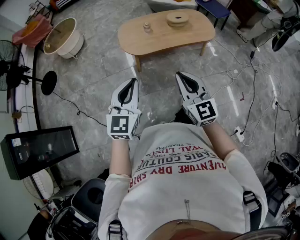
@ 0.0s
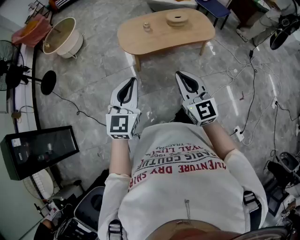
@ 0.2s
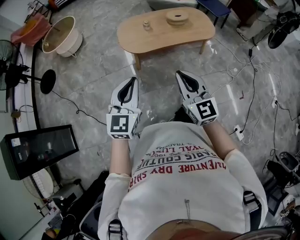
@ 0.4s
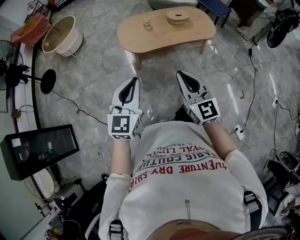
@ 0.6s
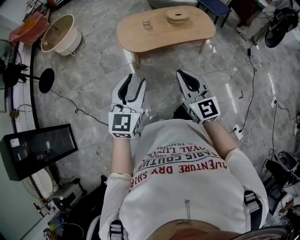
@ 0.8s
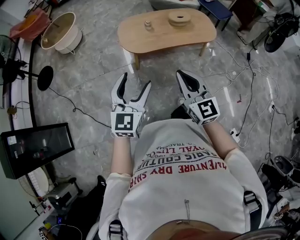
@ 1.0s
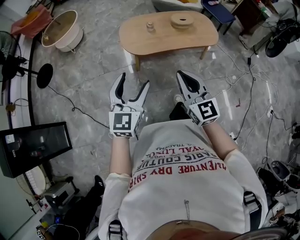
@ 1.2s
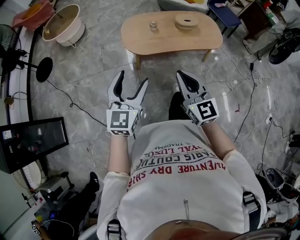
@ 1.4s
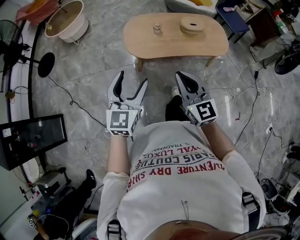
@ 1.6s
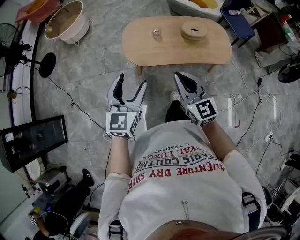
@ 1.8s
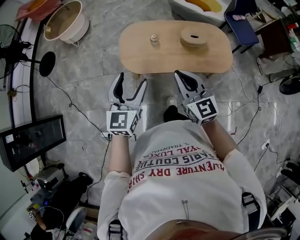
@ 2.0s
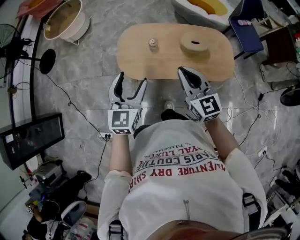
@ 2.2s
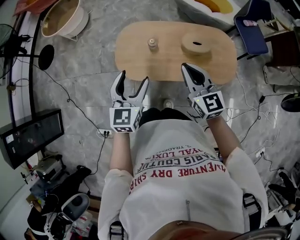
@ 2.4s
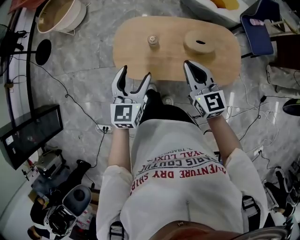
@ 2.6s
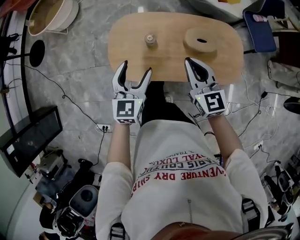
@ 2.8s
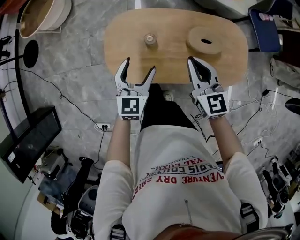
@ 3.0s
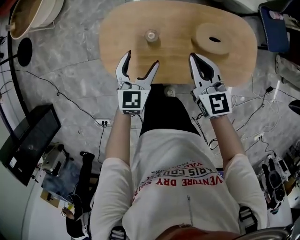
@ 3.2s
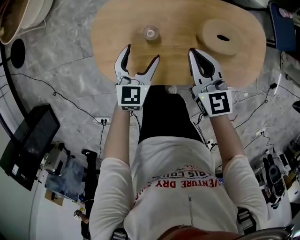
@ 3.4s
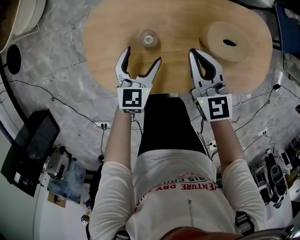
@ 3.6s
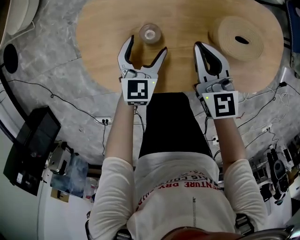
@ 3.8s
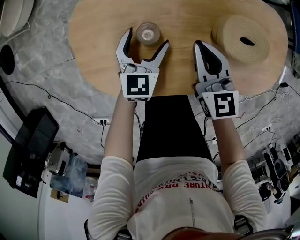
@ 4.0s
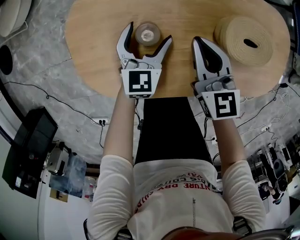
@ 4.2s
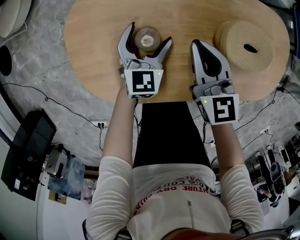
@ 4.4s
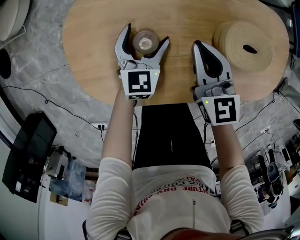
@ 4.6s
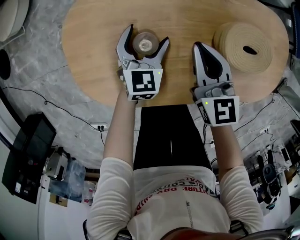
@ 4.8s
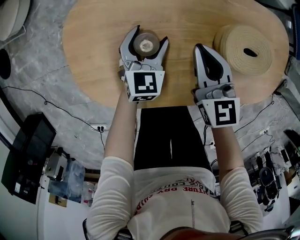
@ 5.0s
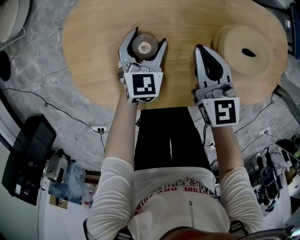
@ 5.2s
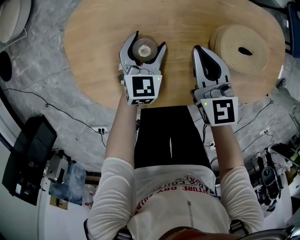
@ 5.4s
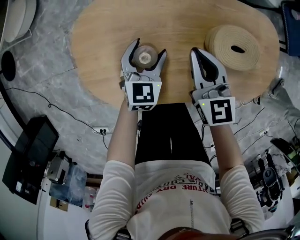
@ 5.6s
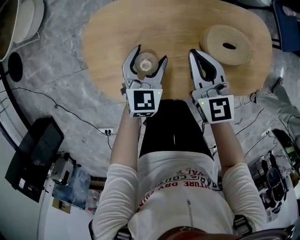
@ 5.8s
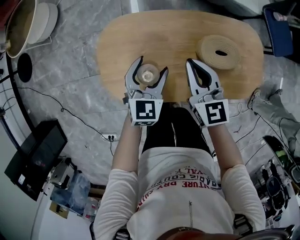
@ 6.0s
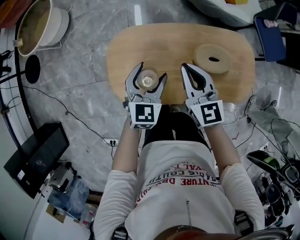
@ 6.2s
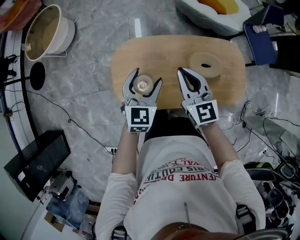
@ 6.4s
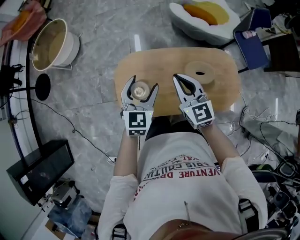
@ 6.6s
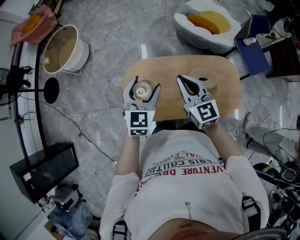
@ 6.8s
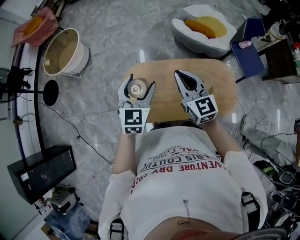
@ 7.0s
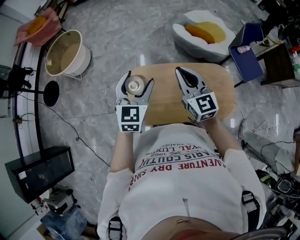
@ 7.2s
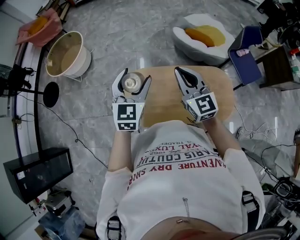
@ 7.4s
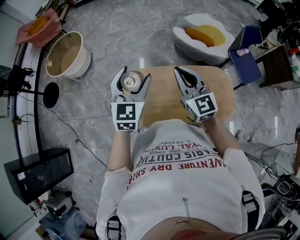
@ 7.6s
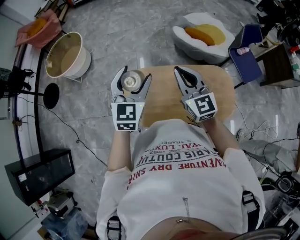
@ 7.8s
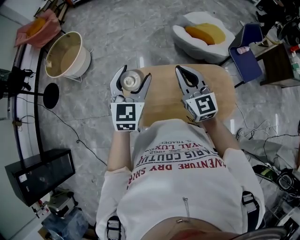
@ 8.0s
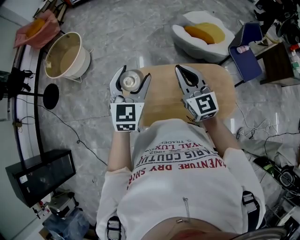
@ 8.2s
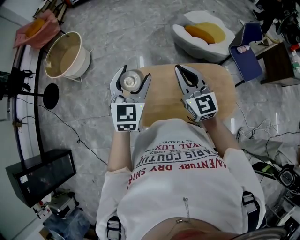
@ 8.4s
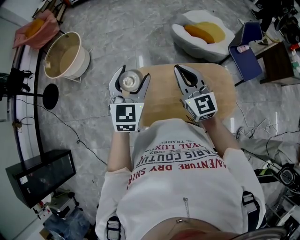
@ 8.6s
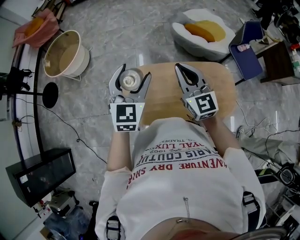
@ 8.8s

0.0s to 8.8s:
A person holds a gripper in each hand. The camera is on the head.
0.0s to 1.4s: The two grippers go about 10 cm forward. The left gripper opens its fingers.
1.4s to 3.0s: The two grippers travel together, forward and to the right, some 50 cm. The left gripper goes approximately 20 cm downward.
3.0s to 4.4s: The right gripper is displaced downward by roughly 25 cm. The left gripper is displaced downward and forward by approximately 35 cm.
4.4s to 5.8s: The two grippers go approximately 10 cm upward.
5.8s to 7.4s: Both grippers move upward, some 40 cm. The right gripper swivels approximately 20 degrees. Meanwhile the left gripper rotates about 20 degrees.
7.4s to 8.8s: The grippers make only small movements.

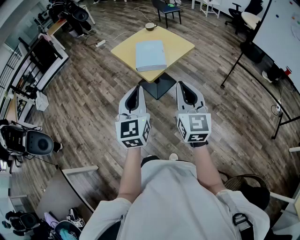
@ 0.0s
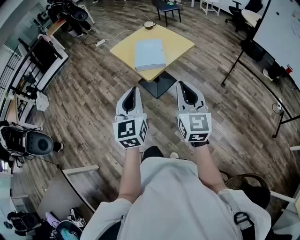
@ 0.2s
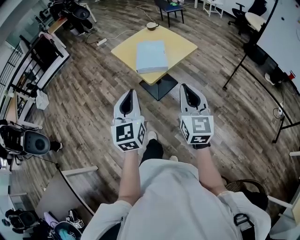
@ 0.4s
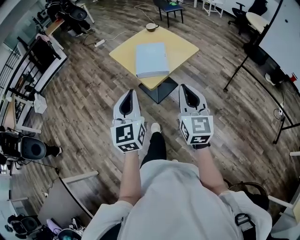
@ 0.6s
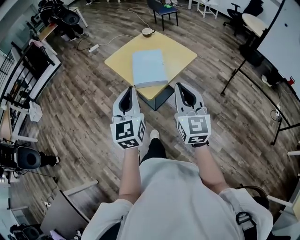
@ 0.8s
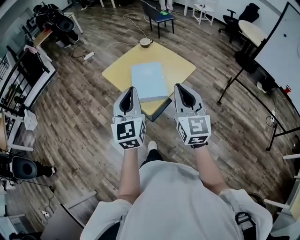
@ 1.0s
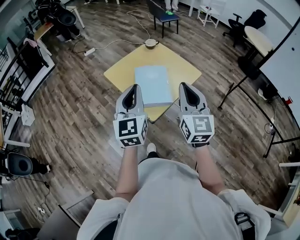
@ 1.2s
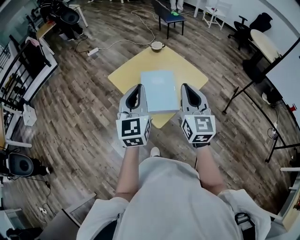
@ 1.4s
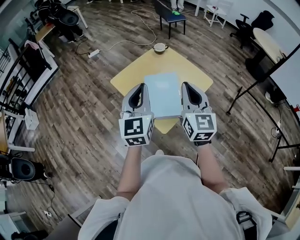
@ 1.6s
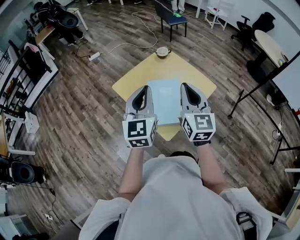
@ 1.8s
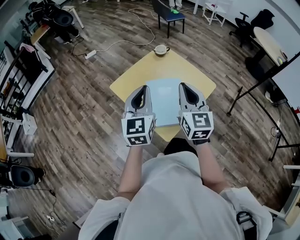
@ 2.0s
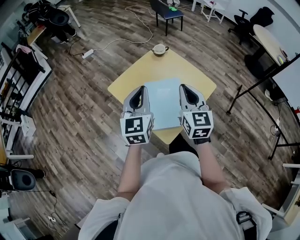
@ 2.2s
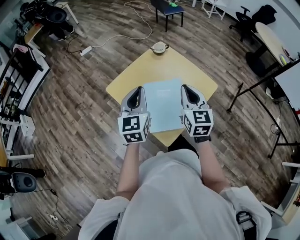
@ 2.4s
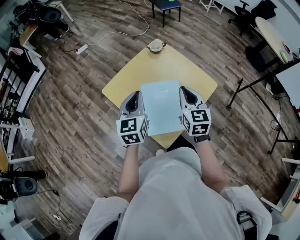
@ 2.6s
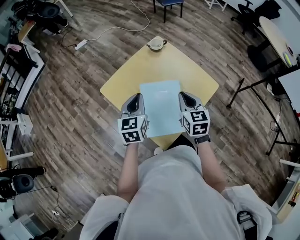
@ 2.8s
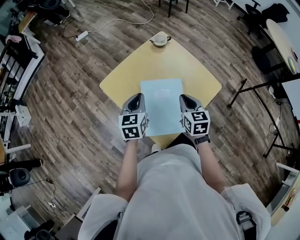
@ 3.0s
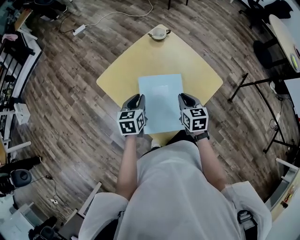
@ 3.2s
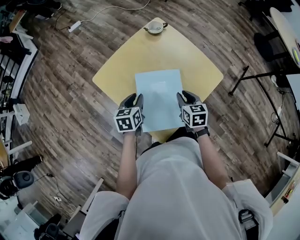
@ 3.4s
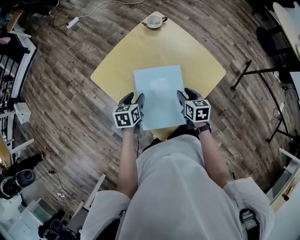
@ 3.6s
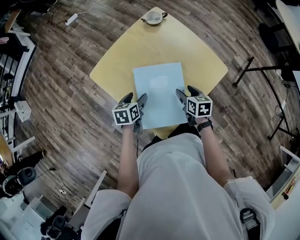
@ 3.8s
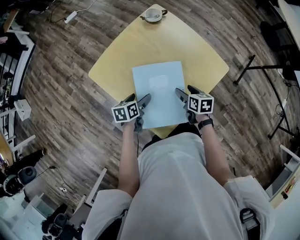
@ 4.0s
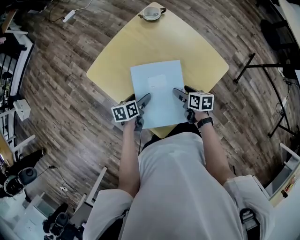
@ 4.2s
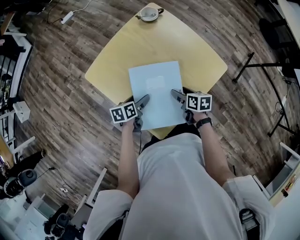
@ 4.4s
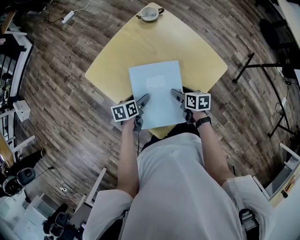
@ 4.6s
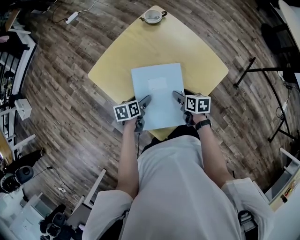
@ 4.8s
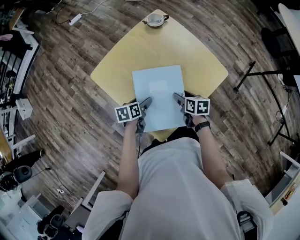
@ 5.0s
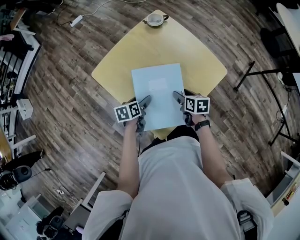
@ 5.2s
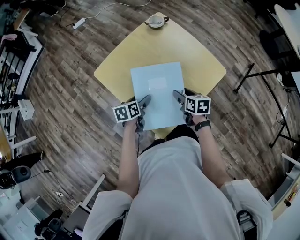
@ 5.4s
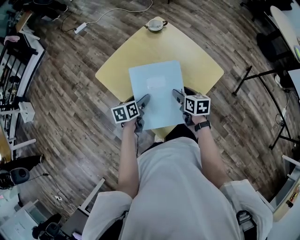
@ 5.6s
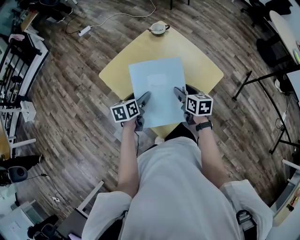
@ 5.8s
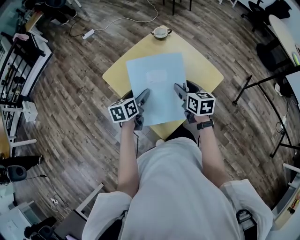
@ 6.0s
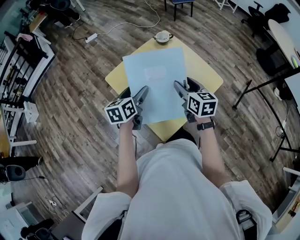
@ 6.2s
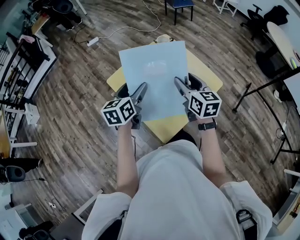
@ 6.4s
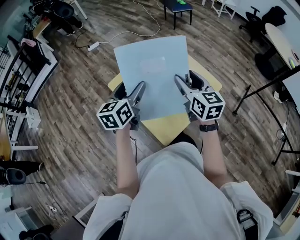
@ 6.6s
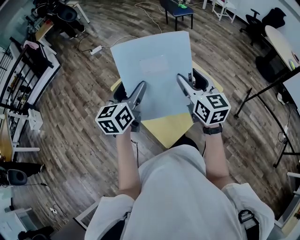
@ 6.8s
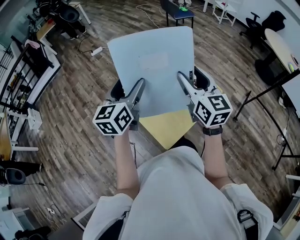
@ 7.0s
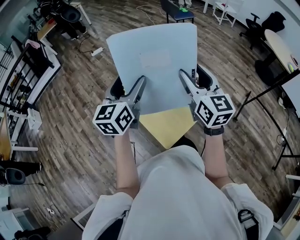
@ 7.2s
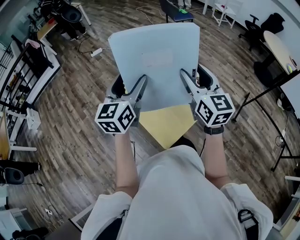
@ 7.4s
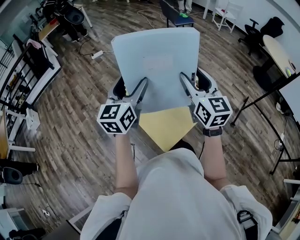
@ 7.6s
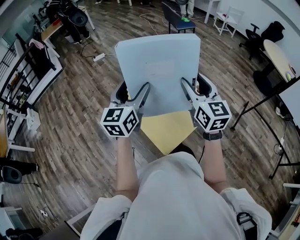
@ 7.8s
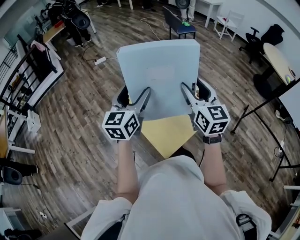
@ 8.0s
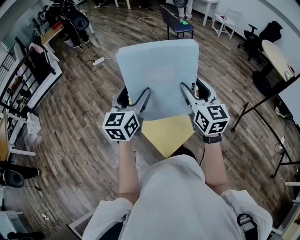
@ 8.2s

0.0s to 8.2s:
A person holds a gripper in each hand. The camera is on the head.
0.0s to 1.6s: Both grippers are carried forward, some 40 cm.
1.6s to 3.2s: The grippers both shift downward and forward by some 35 cm. The right gripper angles its fingers downward, by about 40 degrees. The left gripper points its fingers about 40 degrees further downward.
3.2s to 5.0s: The grippers both shift downward by some 15 cm. The right gripper changes its angle by some 30 degrees, and opens up. The left gripper changes its angle by about 30 degrees, and opens its fingers.
5.0s to 6.6s: The grippers both shift upward by about 35 cm. The left gripper tips its fingers upward by roughly 30 degrees, while the right gripper tips its fingers upward by roughly 40 degrees.
6.6s to 8.2s: Both grippers move upward, roughly 10 cm.

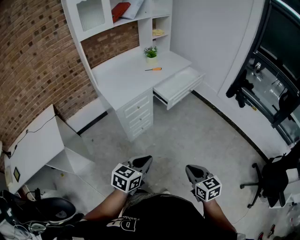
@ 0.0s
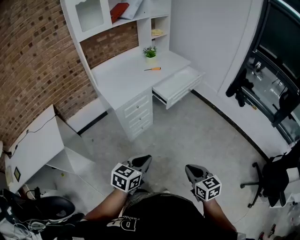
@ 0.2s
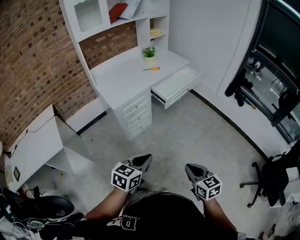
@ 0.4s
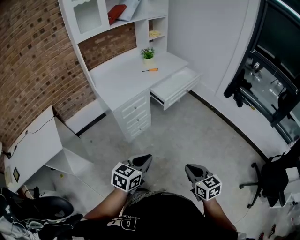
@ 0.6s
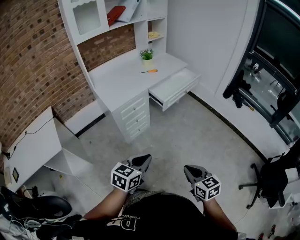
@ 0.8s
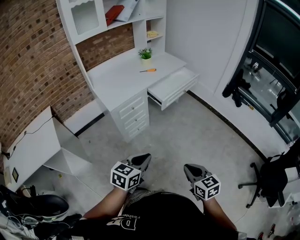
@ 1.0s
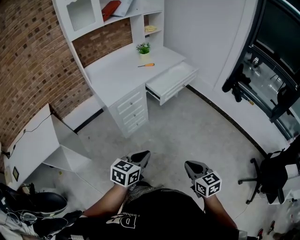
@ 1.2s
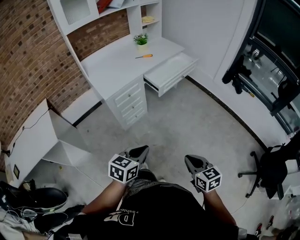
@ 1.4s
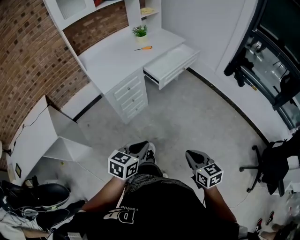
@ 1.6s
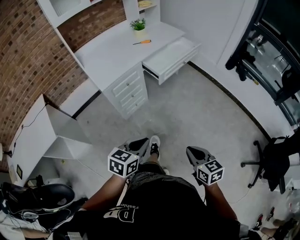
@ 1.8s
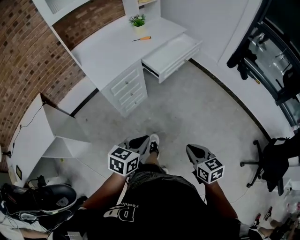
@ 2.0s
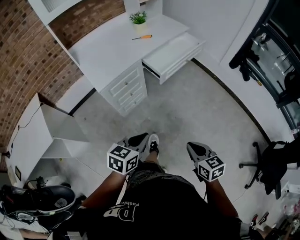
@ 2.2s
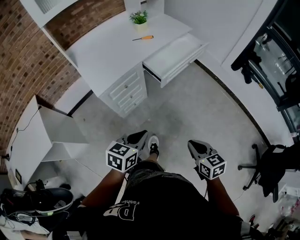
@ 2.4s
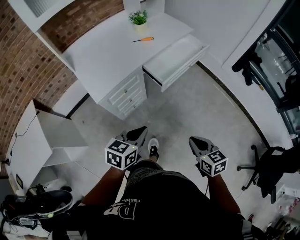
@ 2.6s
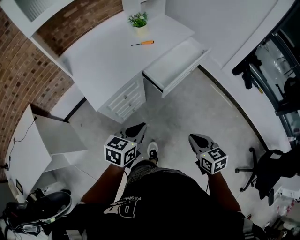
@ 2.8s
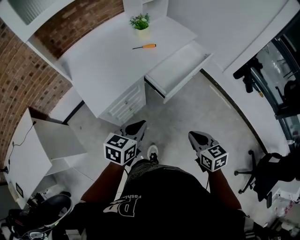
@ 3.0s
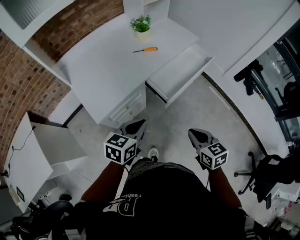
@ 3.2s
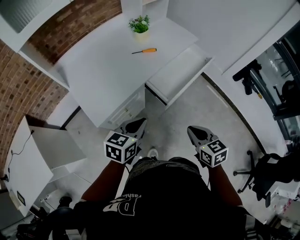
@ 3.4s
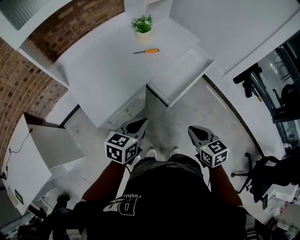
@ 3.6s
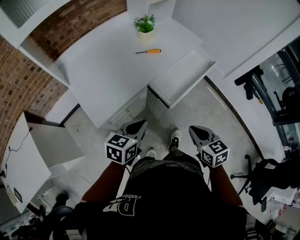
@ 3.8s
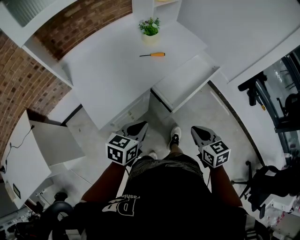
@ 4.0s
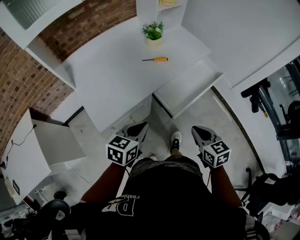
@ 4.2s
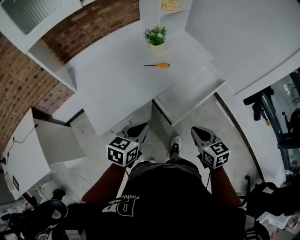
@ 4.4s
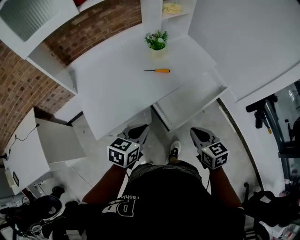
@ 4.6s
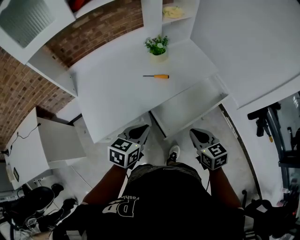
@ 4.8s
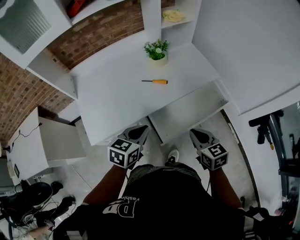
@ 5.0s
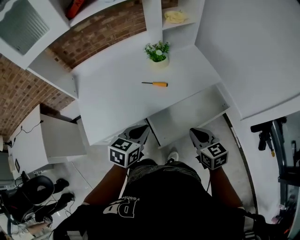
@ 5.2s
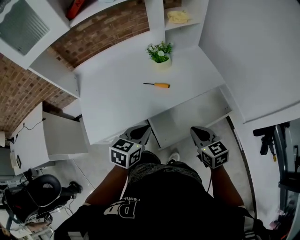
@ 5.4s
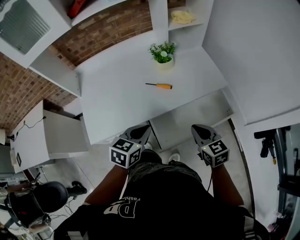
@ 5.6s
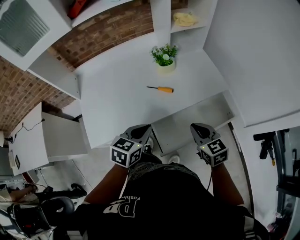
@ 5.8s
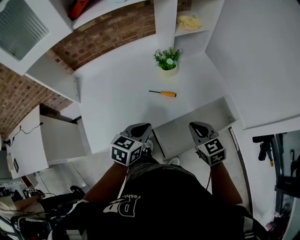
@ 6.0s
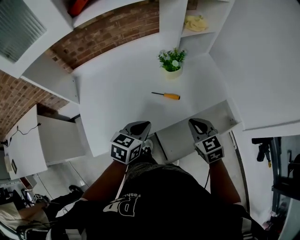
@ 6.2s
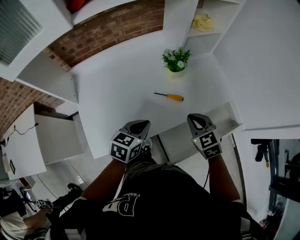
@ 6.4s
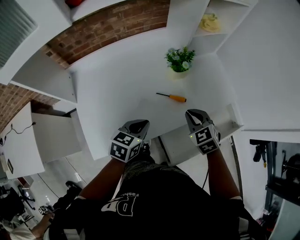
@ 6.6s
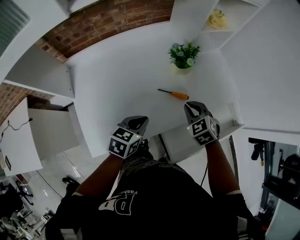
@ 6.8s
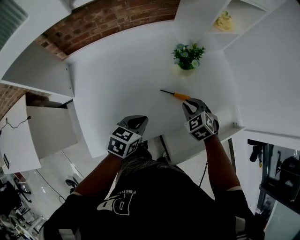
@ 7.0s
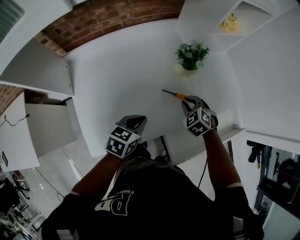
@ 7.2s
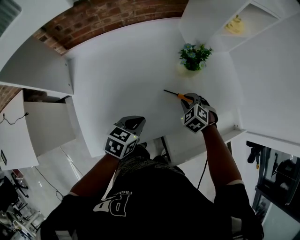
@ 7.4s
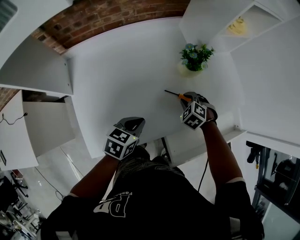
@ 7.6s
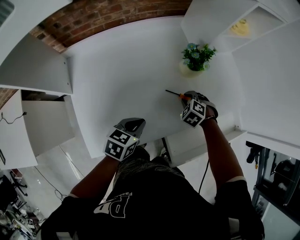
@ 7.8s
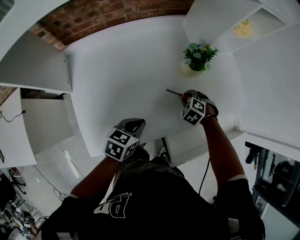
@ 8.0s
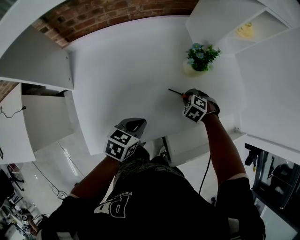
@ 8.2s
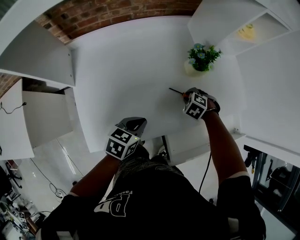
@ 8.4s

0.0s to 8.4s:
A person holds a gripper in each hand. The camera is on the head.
0.0s to 1.4s: Both grippers travel together to the right, approximately 5 cm.
1.4s to 2.8s: Both grippers move forward, roughly 30 cm.
2.8s to 4.2s: Both grippers travel together forward, about 20 cm.
4.2s to 5.6s: Both grippers move forward and to the right, about 20 cm.
5.6s to 7.0s: Both grippers travel together forward, to the left and downward, approximately 25 cm. The right gripper turns by approximately 40 degrees.
7.0s to 8.4s: The left gripper shifts by about 5 cm; the right gripper goes roughly 10 cm downward, and rotates roughly 30 degrees.
